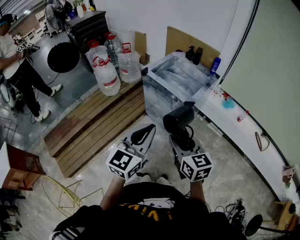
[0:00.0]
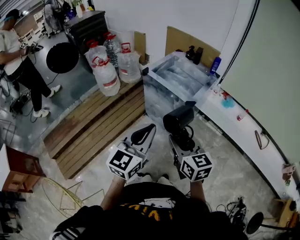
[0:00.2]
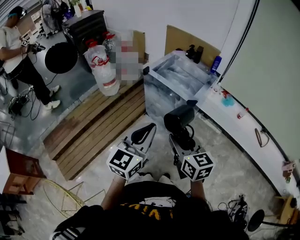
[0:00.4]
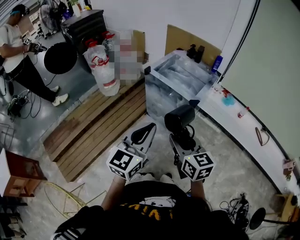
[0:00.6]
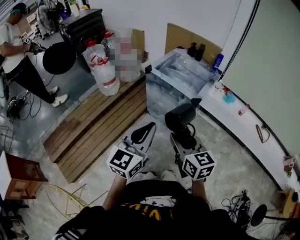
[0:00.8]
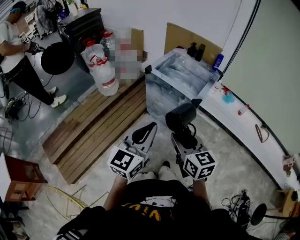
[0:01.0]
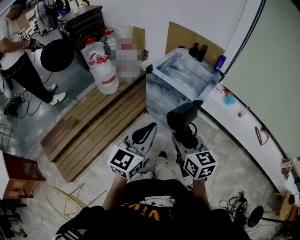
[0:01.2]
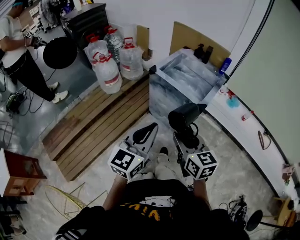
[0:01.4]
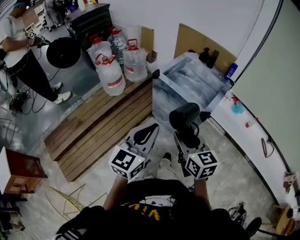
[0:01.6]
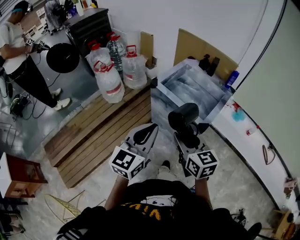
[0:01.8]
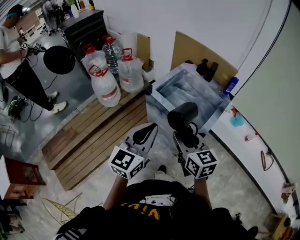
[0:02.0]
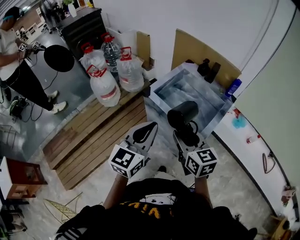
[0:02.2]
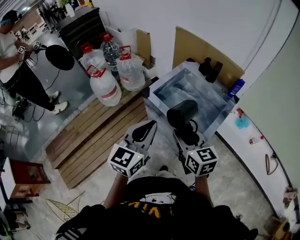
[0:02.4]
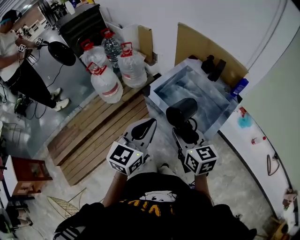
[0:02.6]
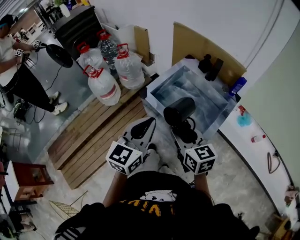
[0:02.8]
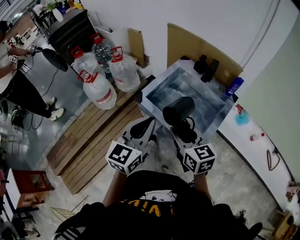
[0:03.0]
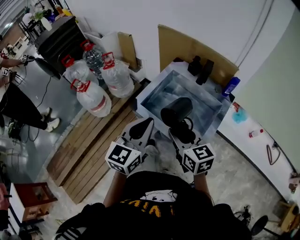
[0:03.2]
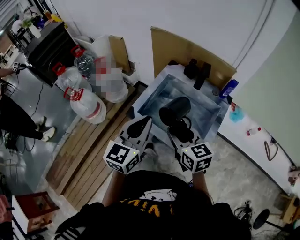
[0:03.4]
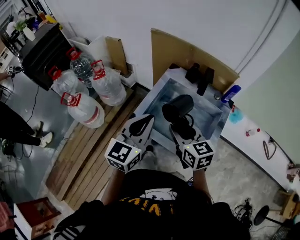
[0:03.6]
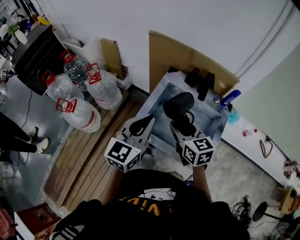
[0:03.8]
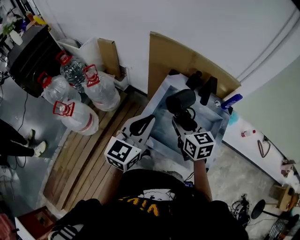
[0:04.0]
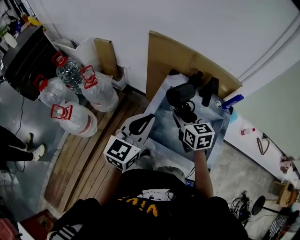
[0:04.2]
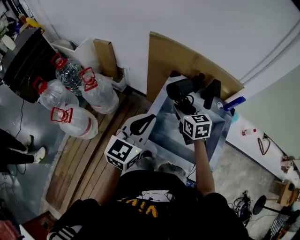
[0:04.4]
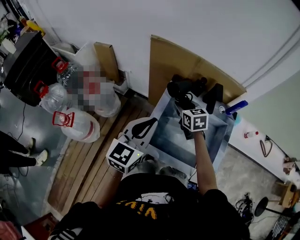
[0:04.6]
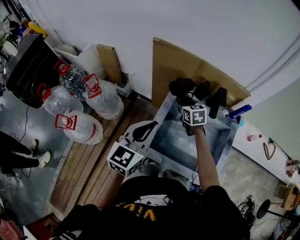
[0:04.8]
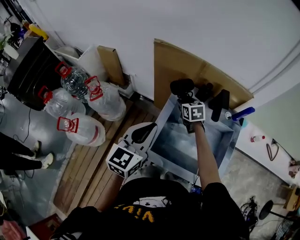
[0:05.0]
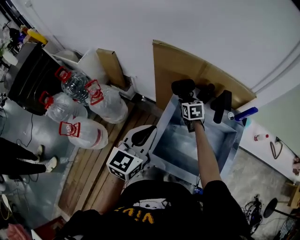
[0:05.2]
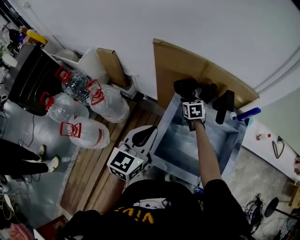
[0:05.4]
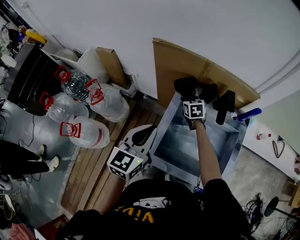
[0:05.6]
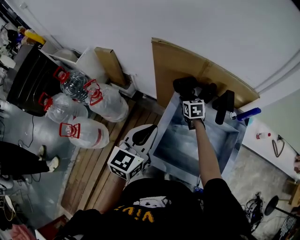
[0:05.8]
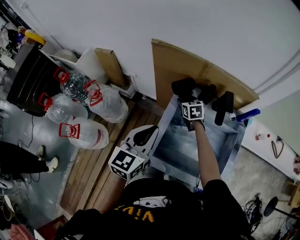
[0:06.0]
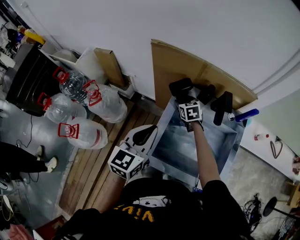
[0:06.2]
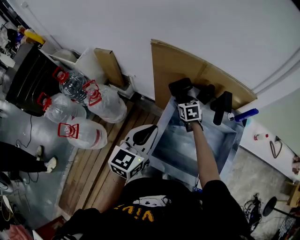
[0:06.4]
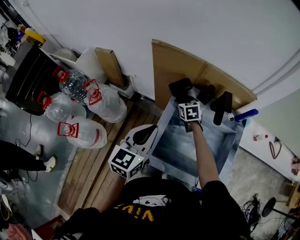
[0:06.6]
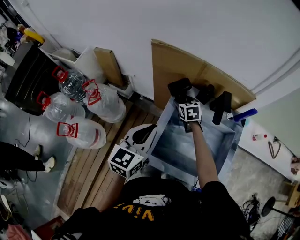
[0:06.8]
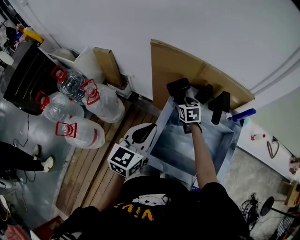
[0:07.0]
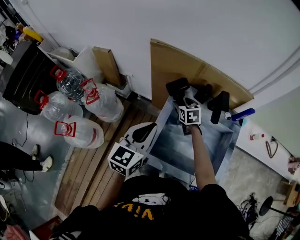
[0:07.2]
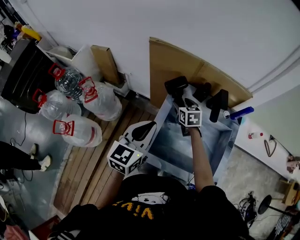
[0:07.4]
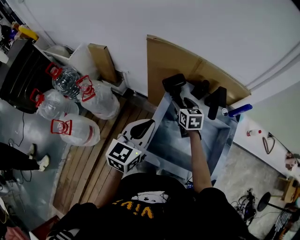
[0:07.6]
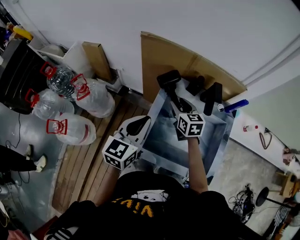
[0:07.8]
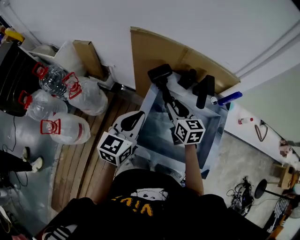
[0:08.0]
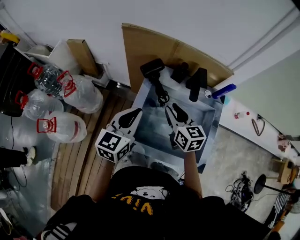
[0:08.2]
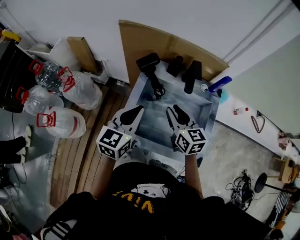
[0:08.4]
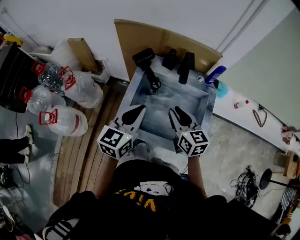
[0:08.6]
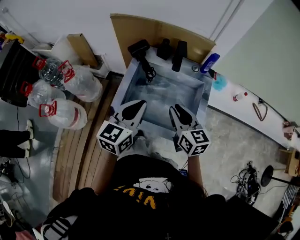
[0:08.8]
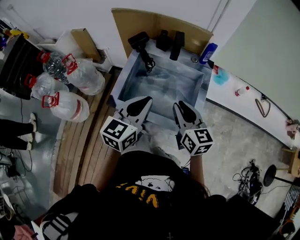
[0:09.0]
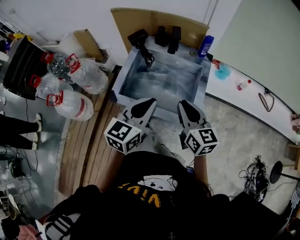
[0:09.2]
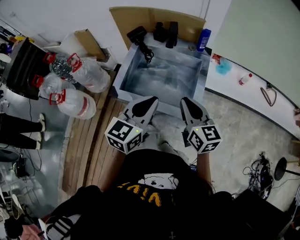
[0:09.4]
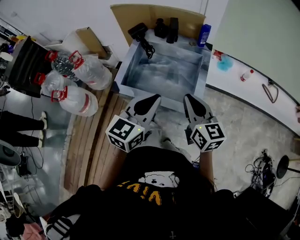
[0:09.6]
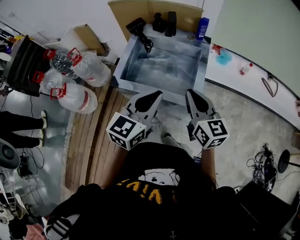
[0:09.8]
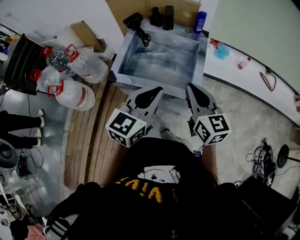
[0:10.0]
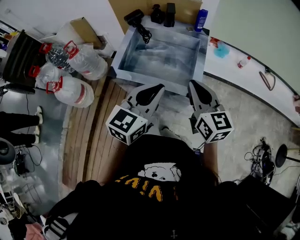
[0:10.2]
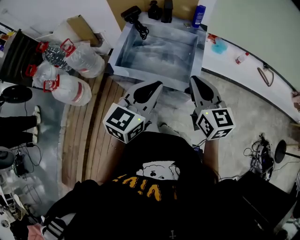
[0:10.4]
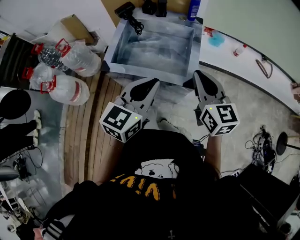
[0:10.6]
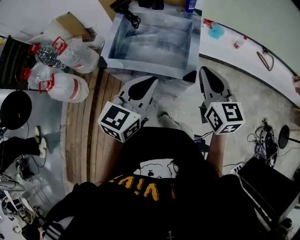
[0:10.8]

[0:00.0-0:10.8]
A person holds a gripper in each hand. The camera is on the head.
0:00.0 to 0:01.6: The two grippers go roughly 15 cm forward and to the left.
0:01.6 to 0:03.0: The two grippers go approximately 25 cm forward.
0:03.0 to 0:04.6: Both grippers travel together forward, some 30 cm. The right gripper rotates about 30 degrees. The left gripper changes its angle by roughly 20 degrees.
0:04.6 to 0:06.2: The right gripper shifts about 15 cm forward and downward. The left gripper goes about 5 cm forward.
0:06.2 to 0:07.8: The right gripper travels upward and backward by about 10 cm.
0:07.8 to 0:09.2: The right gripper shifts roughly 35 cm backward and to the right, and closes up. Meanwhile the left gripper is displaced to the right and backward by approximately 30 cm.
0:09.2 to 0:10.8: The left gripper travels backward by some 10 cm; the right gripper travels to the right and backward by approximately 10 cm.

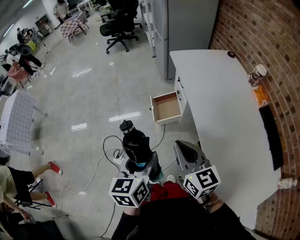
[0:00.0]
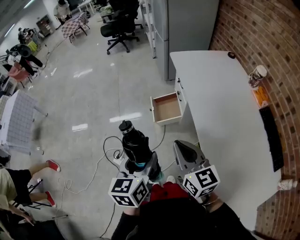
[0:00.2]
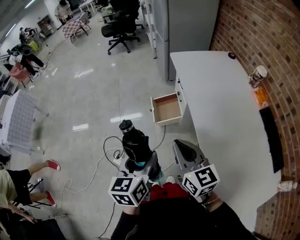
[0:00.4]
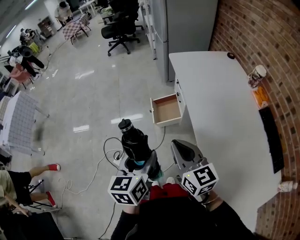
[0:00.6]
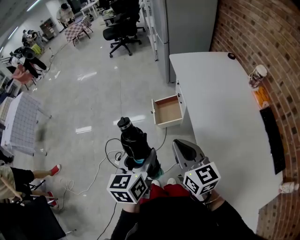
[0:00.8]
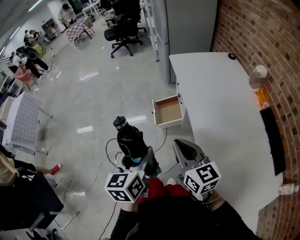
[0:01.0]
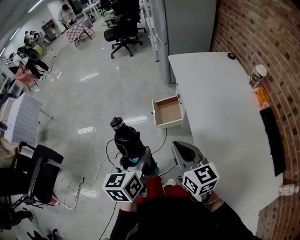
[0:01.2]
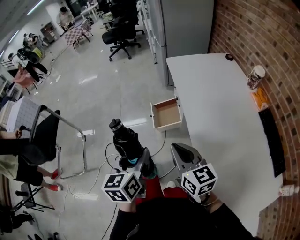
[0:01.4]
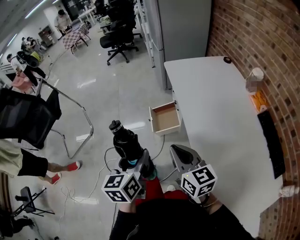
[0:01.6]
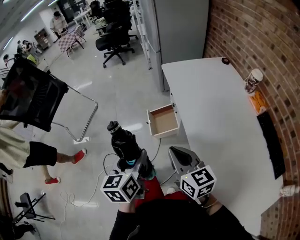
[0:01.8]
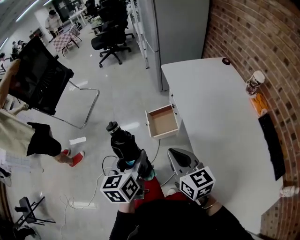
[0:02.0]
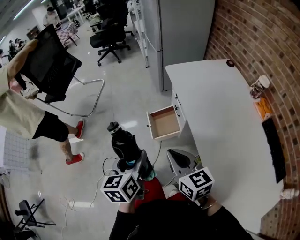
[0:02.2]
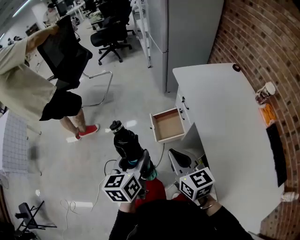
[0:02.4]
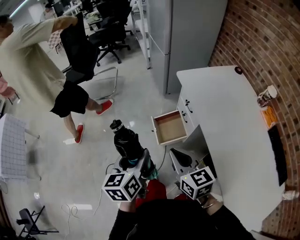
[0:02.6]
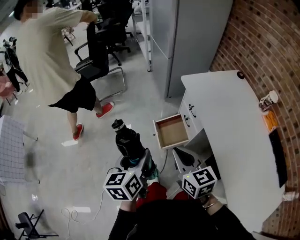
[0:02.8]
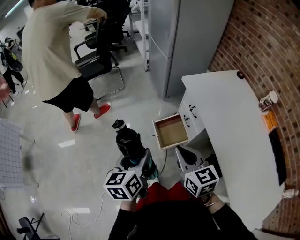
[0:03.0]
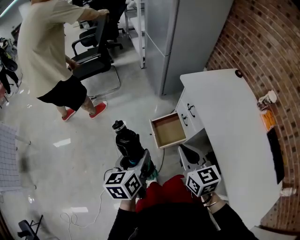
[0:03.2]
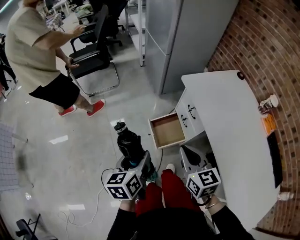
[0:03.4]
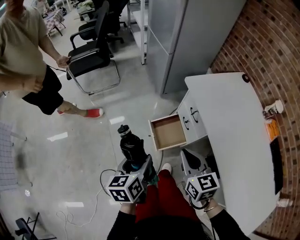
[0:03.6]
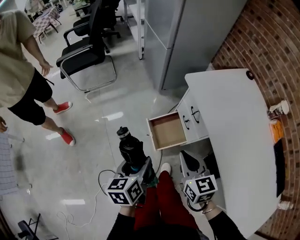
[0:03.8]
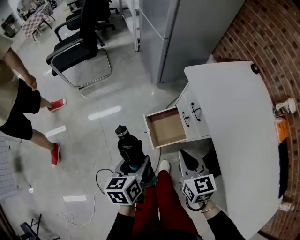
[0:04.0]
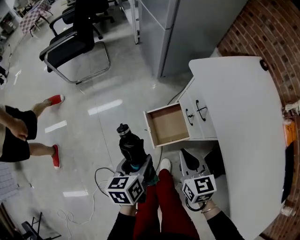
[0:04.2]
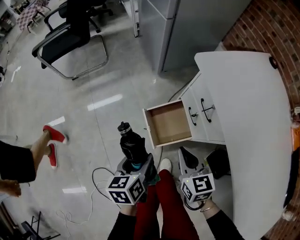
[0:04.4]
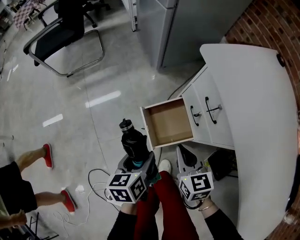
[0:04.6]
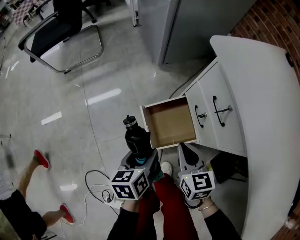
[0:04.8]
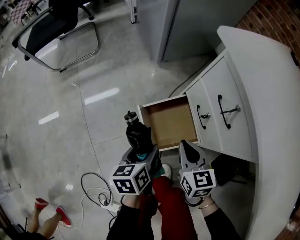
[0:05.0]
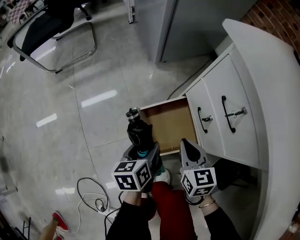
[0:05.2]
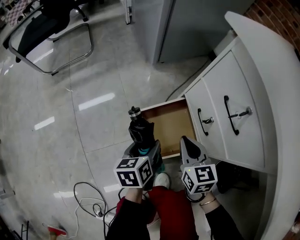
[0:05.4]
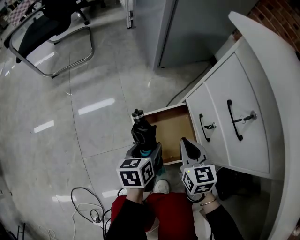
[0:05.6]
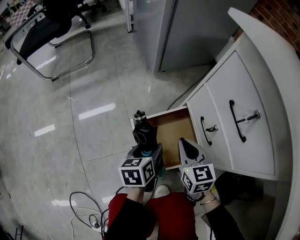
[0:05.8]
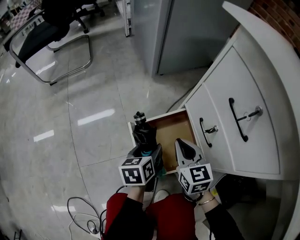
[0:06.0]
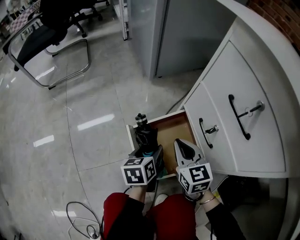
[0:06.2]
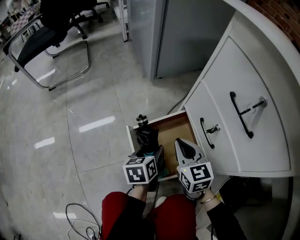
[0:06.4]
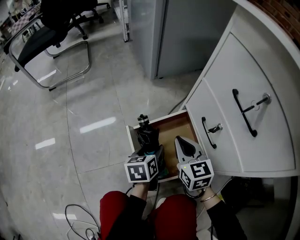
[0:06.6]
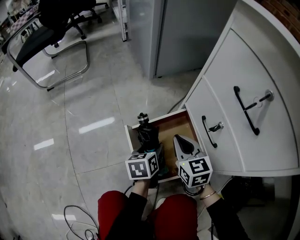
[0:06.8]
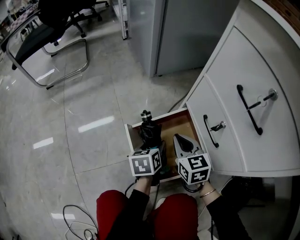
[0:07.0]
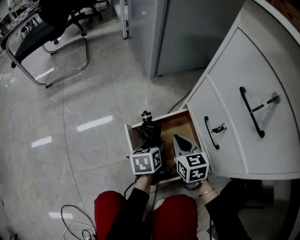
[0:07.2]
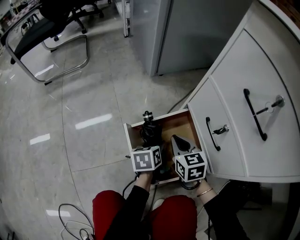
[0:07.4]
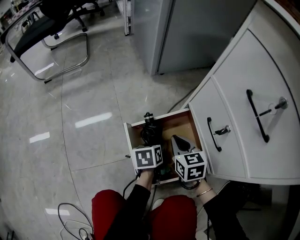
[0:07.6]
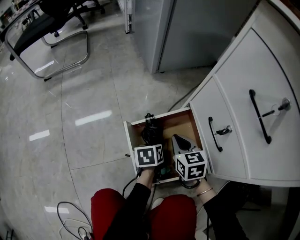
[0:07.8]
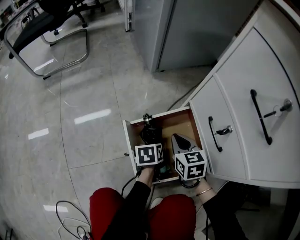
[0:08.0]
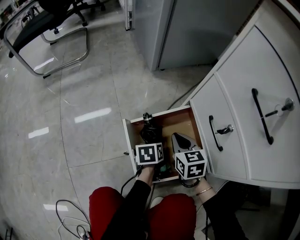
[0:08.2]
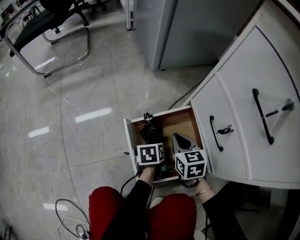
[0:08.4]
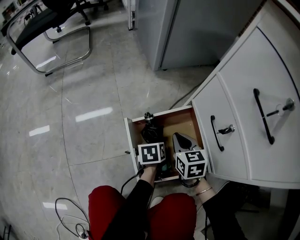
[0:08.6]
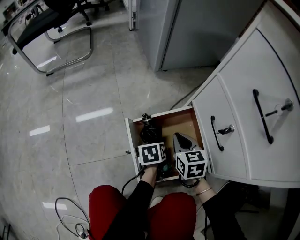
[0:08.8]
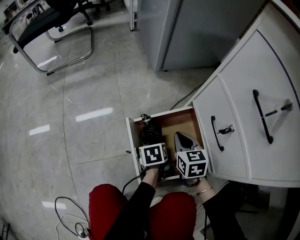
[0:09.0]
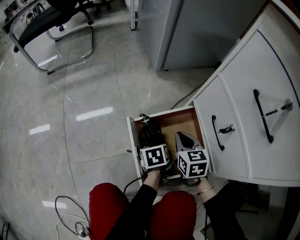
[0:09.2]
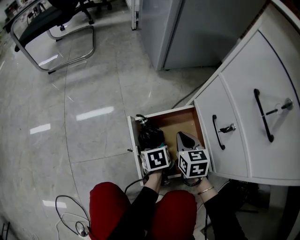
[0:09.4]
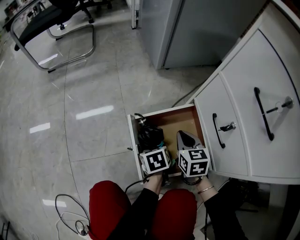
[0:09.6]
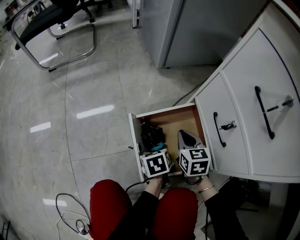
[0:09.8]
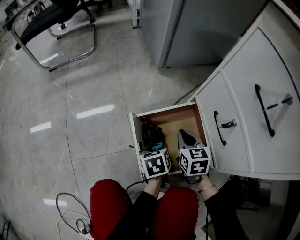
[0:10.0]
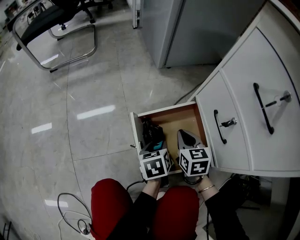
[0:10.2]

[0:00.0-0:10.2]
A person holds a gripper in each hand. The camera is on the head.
0:00.0 to 0:01.4: The grippers make only small movements.
0:01.4 to 0:03.0: The two grippers go about 30 cm forward and to the left.
0:03.0 to 0:04.4: Both grippers move downward and forward, some 30 cm.
0:04.4 to 0:05.8: Both grippers move downward and forward, roughly 30 cm.
0:05.8 to 0:07.2: The grippers both shift downward by about 10 cm.
0:07.2 to 0:08.8: The left gripper goes approximately 5 cm downward.
0:08.8 to 0:10.2: The left gripper is displaced upward by approximately 5 cm, and closes.

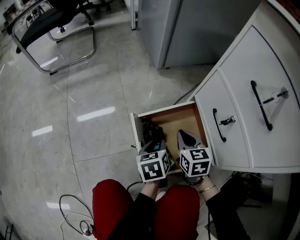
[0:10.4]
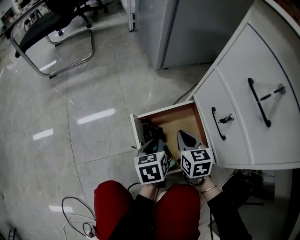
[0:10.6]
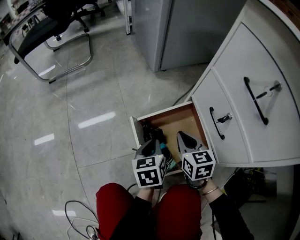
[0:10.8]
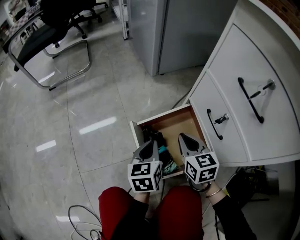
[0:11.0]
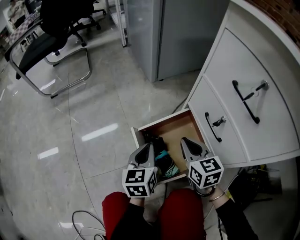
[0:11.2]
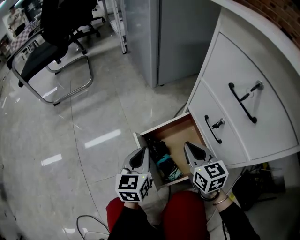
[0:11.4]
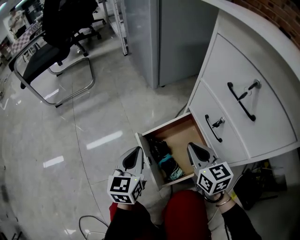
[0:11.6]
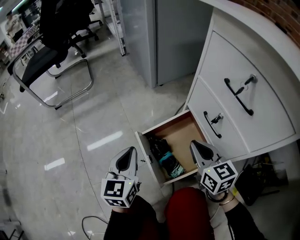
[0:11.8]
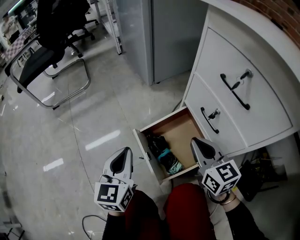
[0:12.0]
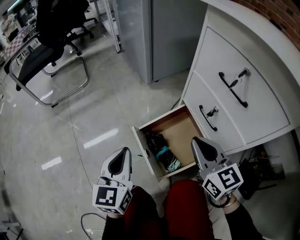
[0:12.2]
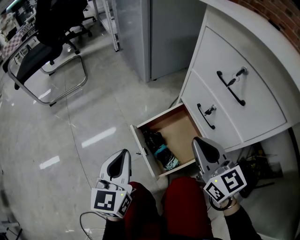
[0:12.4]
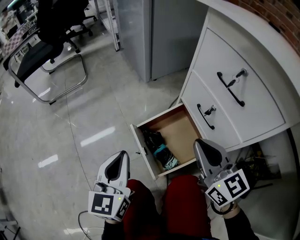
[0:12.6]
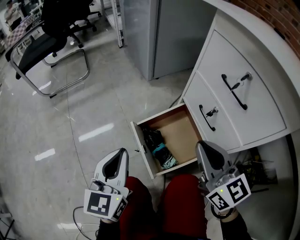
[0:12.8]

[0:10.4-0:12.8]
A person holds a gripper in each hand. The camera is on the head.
0:10.4 to 0:11.6: The right gripper travels upward by some 10 cm, while the left gripper heads upward and to the left, covering about 15 cm, rotates roughly 40 degrees, and closes.
0:11.6 to 0:12.8: Both grippers travel together upward and backward, about 15 cm.
